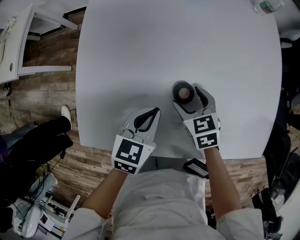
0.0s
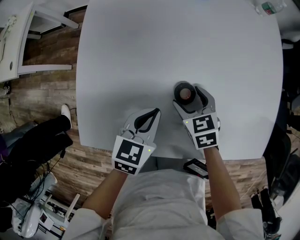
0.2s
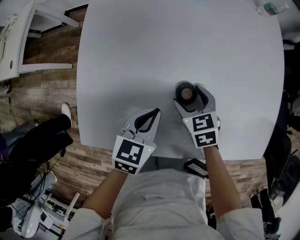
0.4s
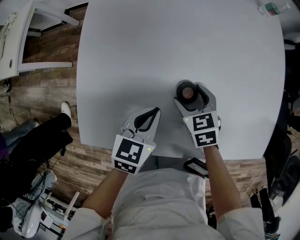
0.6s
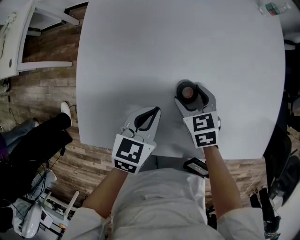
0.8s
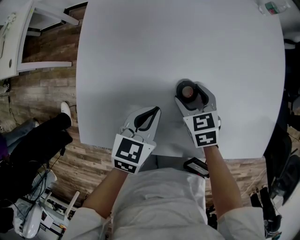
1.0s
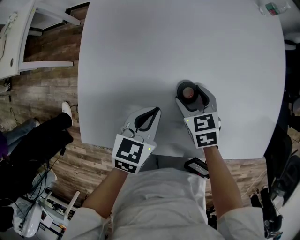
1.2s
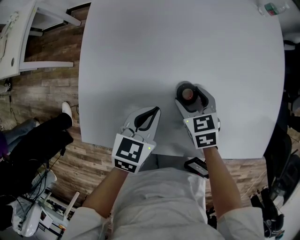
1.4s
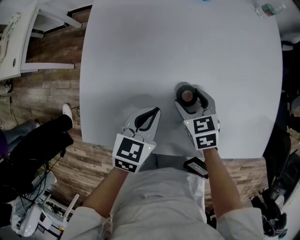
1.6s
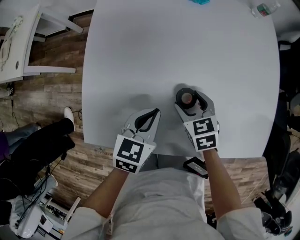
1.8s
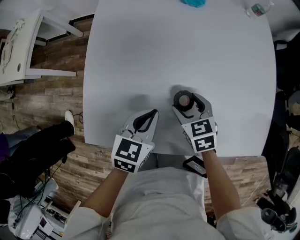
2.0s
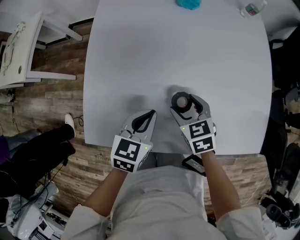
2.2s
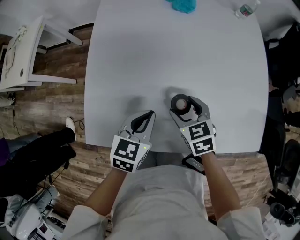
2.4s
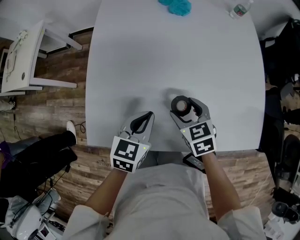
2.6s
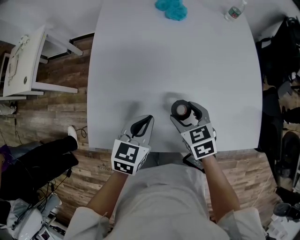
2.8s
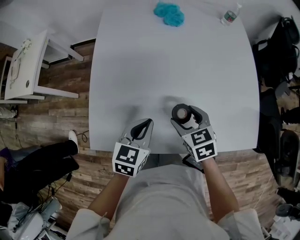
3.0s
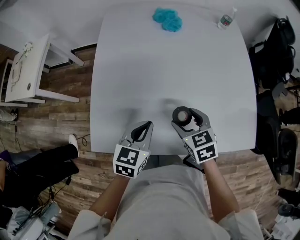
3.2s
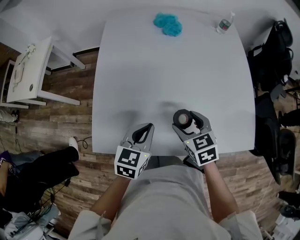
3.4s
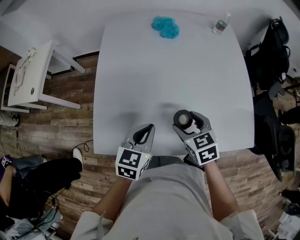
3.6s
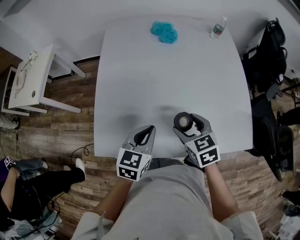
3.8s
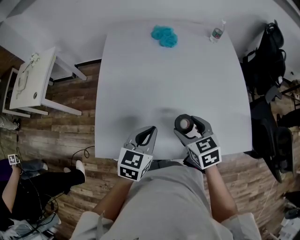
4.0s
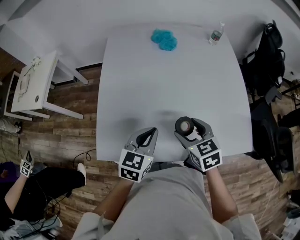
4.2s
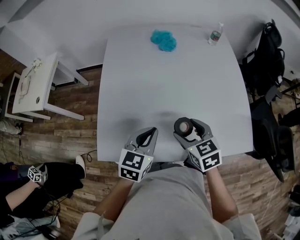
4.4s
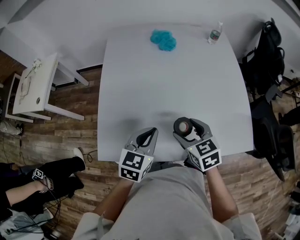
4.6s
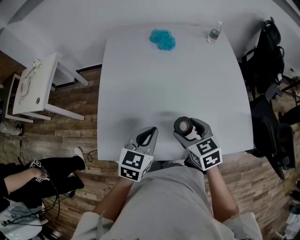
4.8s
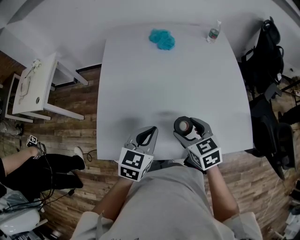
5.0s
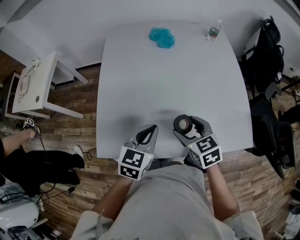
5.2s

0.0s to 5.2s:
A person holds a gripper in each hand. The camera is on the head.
0.0s to 1.8s: The grippers make only small movements.
1.8s to 3.4s: The two grippers go some 10 cm upward and backward.
3.4s to 5.2s: The right gripper shifts by some 5 cm; the left gripper changes place by about 5 cm.

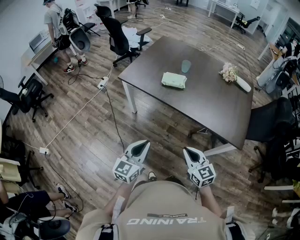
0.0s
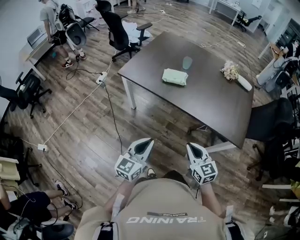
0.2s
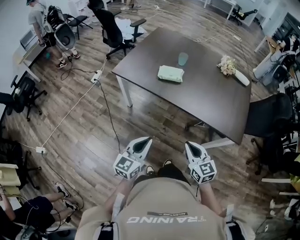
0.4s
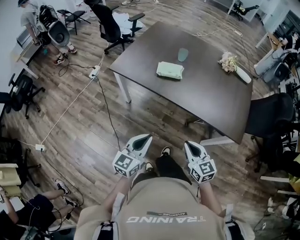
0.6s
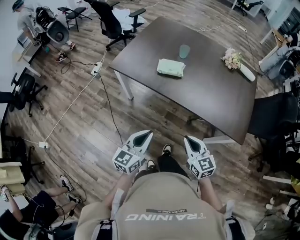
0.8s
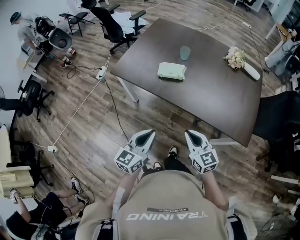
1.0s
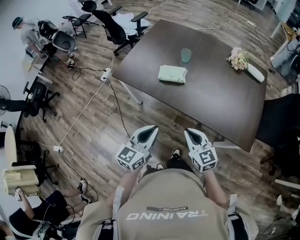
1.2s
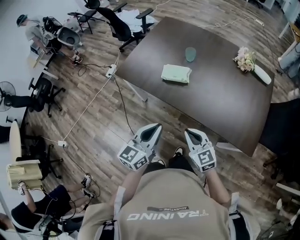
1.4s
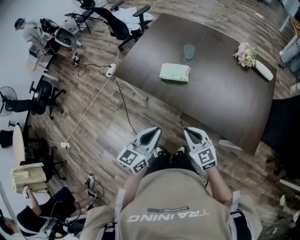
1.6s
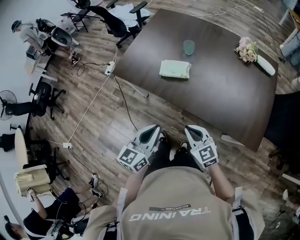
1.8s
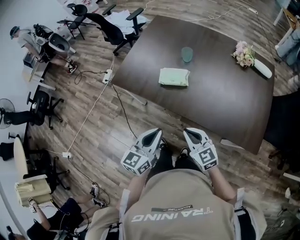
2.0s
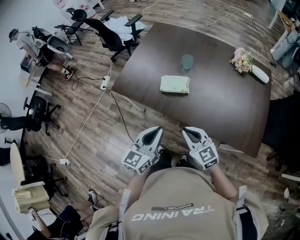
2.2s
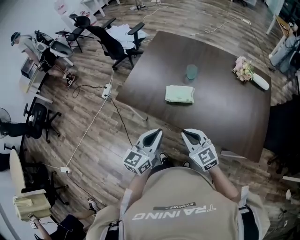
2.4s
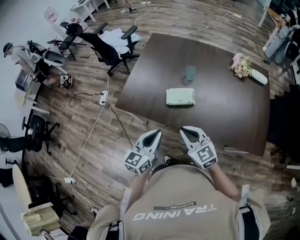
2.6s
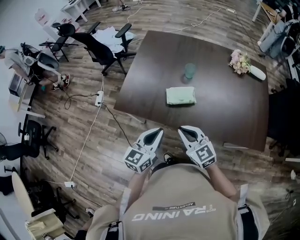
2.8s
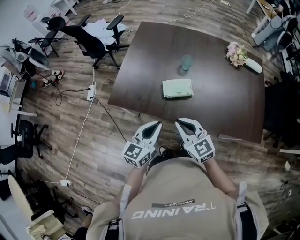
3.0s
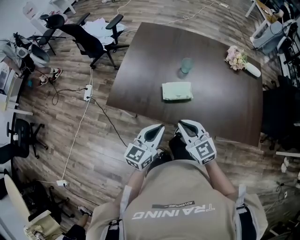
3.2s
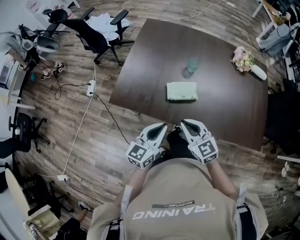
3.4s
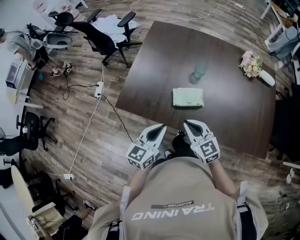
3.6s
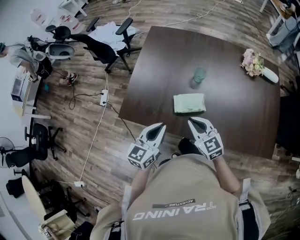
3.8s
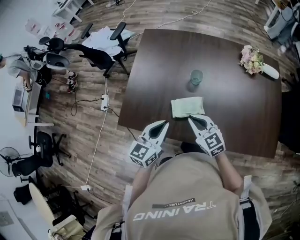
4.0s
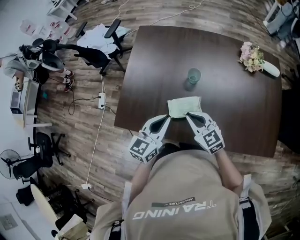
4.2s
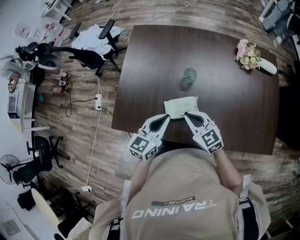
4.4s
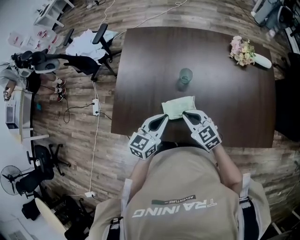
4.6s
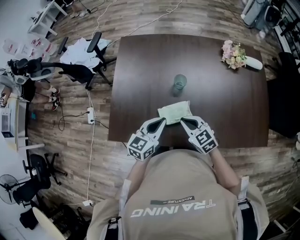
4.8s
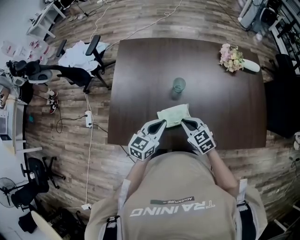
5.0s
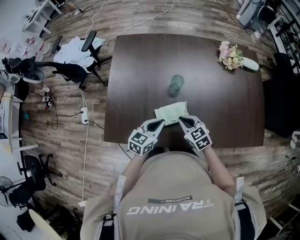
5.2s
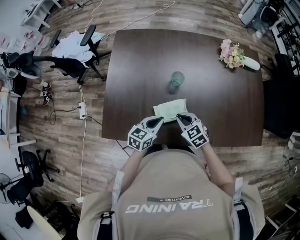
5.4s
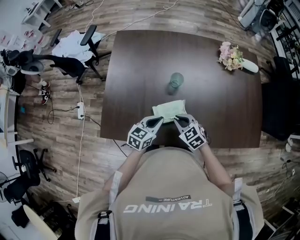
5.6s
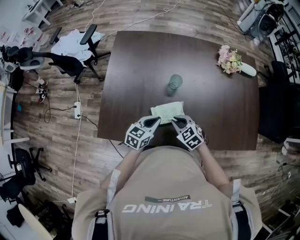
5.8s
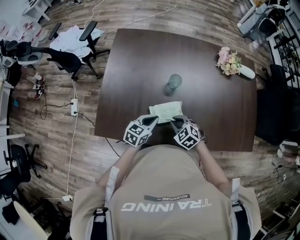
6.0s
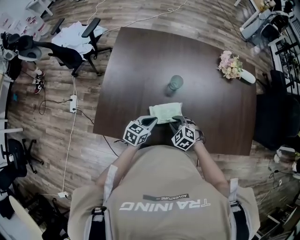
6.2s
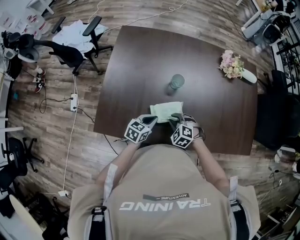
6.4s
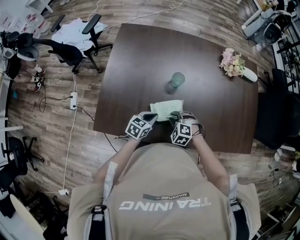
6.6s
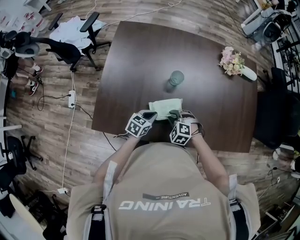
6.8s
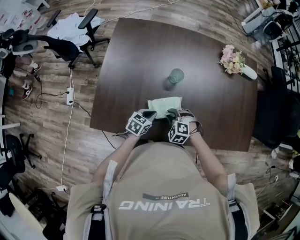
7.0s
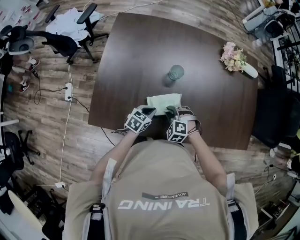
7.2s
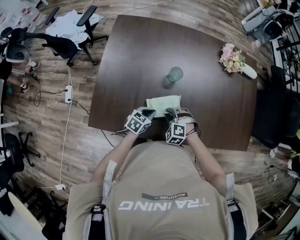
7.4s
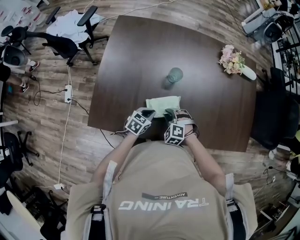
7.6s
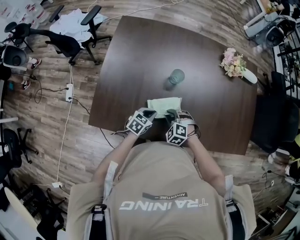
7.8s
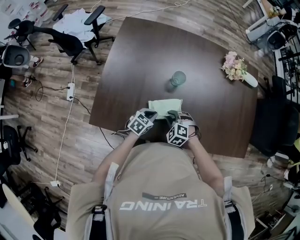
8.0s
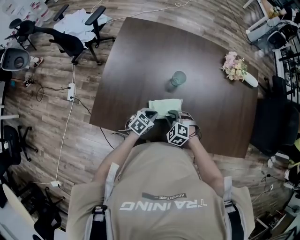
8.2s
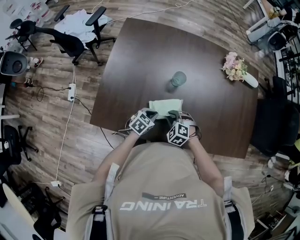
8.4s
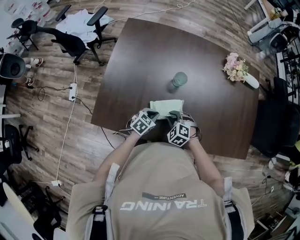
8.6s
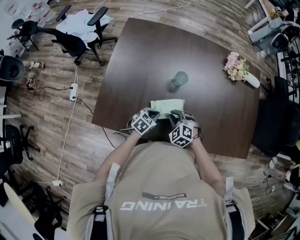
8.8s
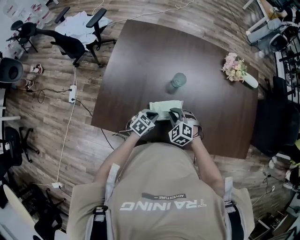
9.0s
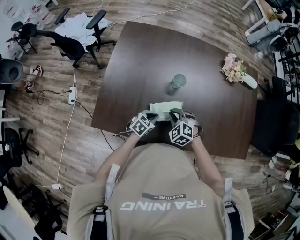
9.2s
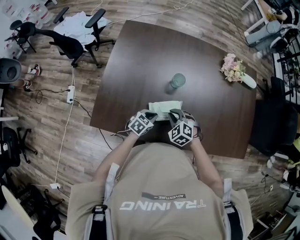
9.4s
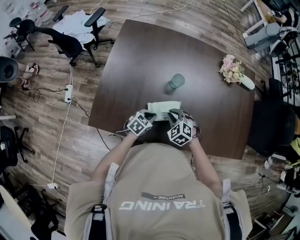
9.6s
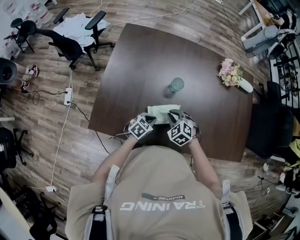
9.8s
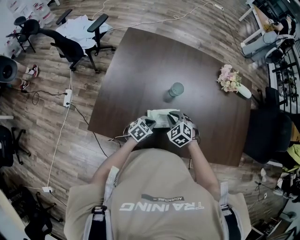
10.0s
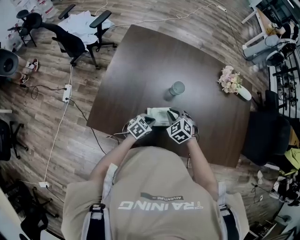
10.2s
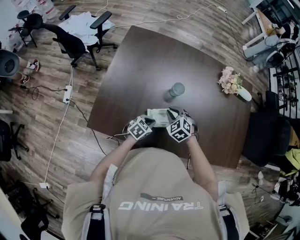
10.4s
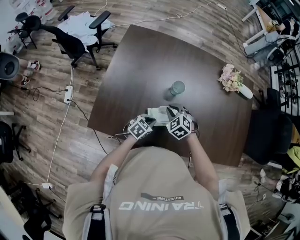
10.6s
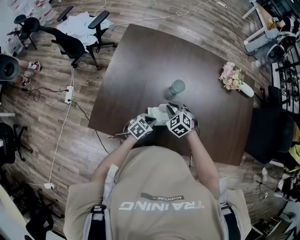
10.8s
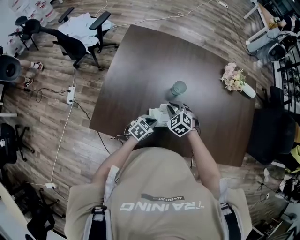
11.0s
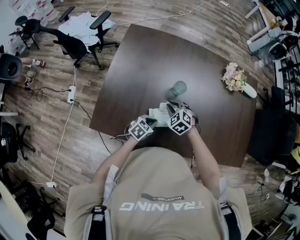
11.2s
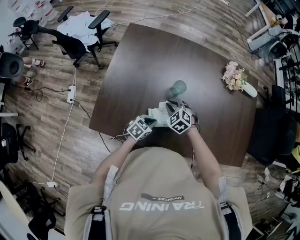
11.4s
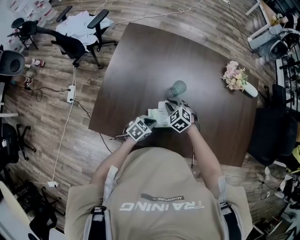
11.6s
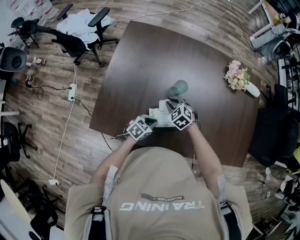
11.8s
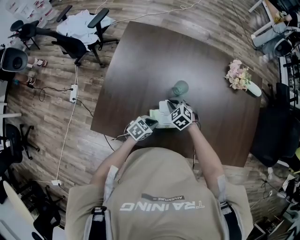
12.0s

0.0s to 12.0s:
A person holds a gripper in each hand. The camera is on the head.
0.0s to 1.6s: The left gripper moves forward and to the right, some 20 cm; the right gripper moves forward, approximately 20 cm.
1.6s to 3.0s: The two grippers go approximately 25 cm forward and to the left.
3.0s to 4.4s: Both grippers travel together forward, some 20 cm.
4.4s to 6.0s: Both grippers move downward, about 10 cm. The right gripper angles its fingers downward, by some 30 degrees. The left gripper swivels some 20 degrees.
6.0s to 7.6s: The left gripper goes about 10 cm downward. The right gripper is displaced downward by about 5 cm, and changes its angle by approximately 30 degrees.
7.6s to 9.0s: The right gripper is displaced upward by about 5 cm.
9.0s to 10.4s: The grippers make only small movements.
10.4s to 12.0s: The right gripper moves forward and downward, about 5 cm.

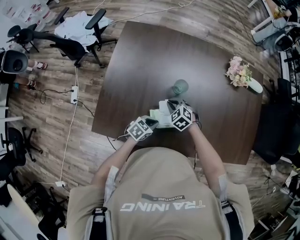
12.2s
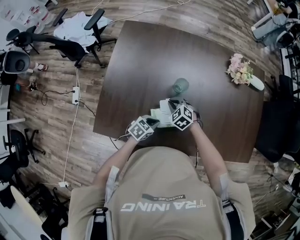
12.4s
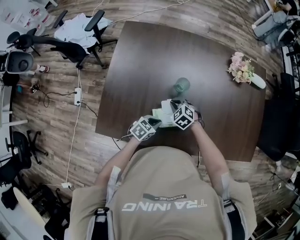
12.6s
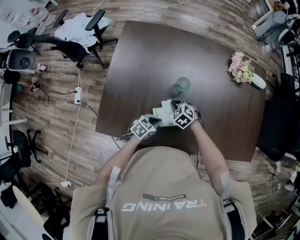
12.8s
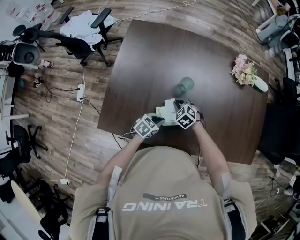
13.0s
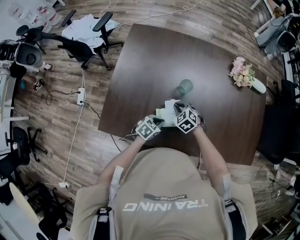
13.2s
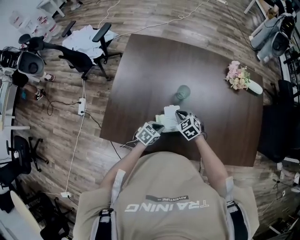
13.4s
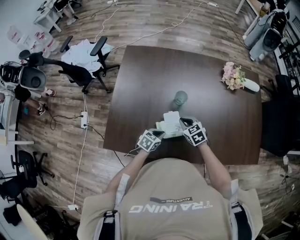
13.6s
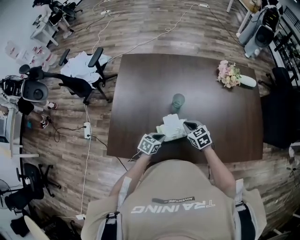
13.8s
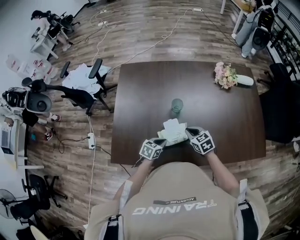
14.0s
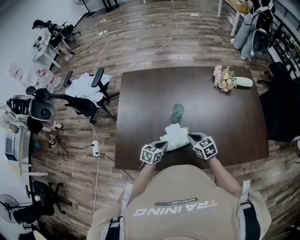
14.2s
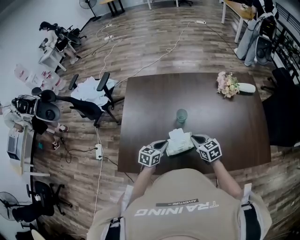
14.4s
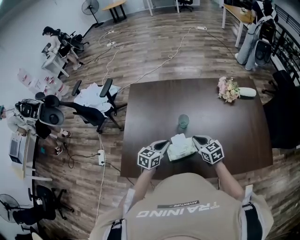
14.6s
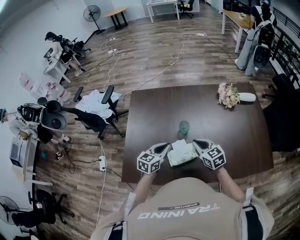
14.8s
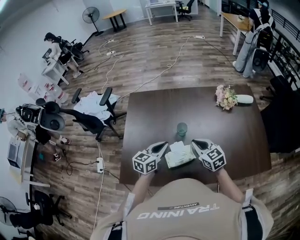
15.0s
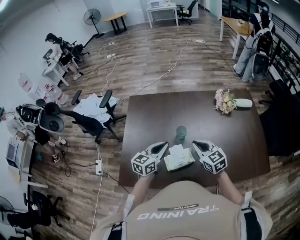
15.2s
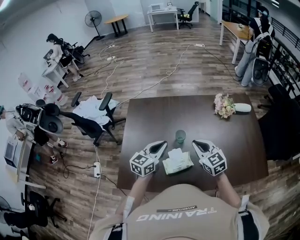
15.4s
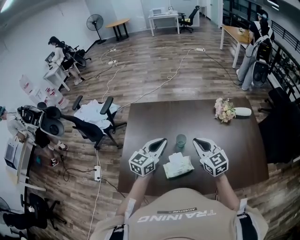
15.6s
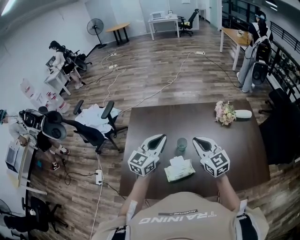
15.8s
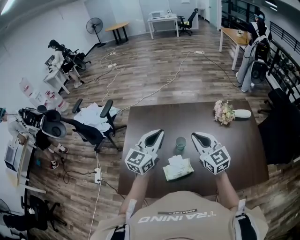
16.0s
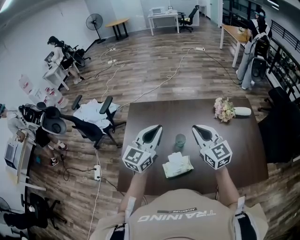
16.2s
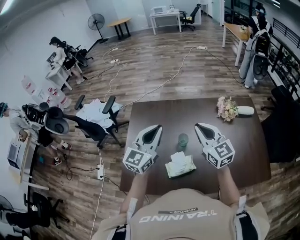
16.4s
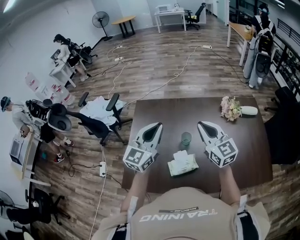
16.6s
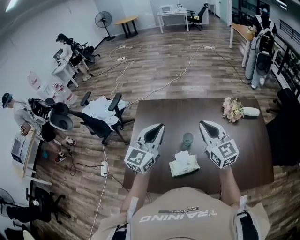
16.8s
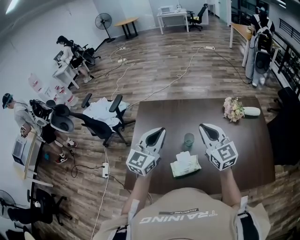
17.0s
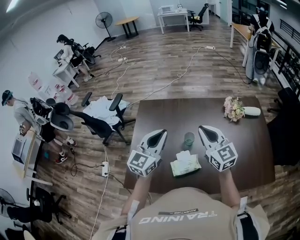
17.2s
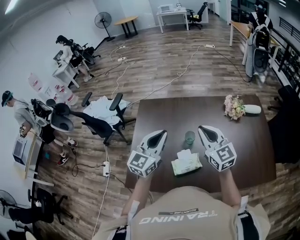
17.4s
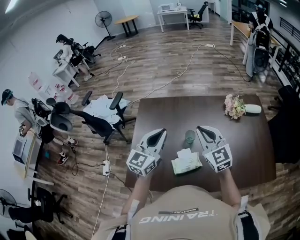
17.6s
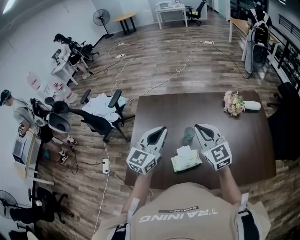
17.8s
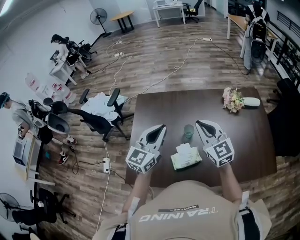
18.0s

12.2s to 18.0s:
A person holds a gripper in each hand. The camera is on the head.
12.2s to 13.6s: The right gripper is displaced to the right by roughly 5 cm, and swivels roughly 30 degrees.
13.6s to 15.0s: The two grippers go about 20 cm upward. The right gripper turns by roughly 20 degrees. Meanwhile the left gripper changes its angle by about 30 degrees.
15.0s to 16.6s: Both grippers move upward, about 20 cm. The right gripper swivels approximately 20 degrees; the left gripper rotates approximately 30 degrees.
16.6s to 18.0s: There are only small adjustments of the grippers.

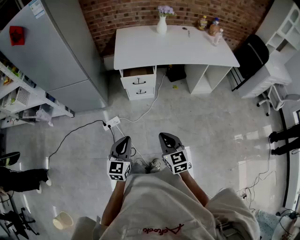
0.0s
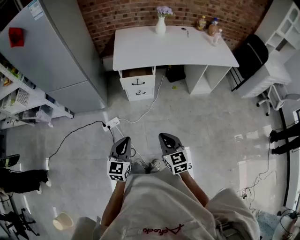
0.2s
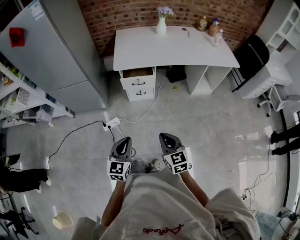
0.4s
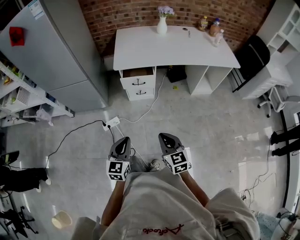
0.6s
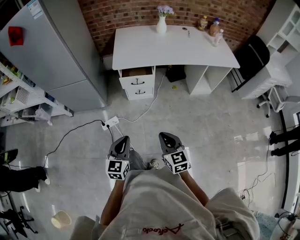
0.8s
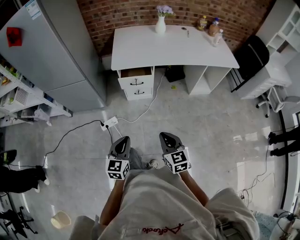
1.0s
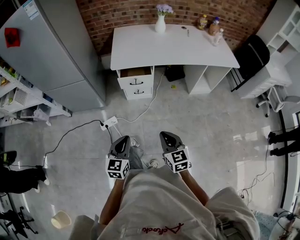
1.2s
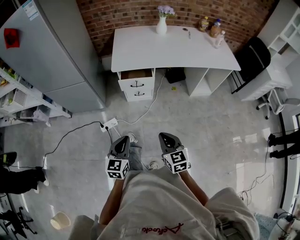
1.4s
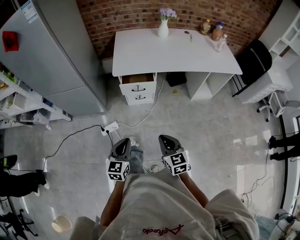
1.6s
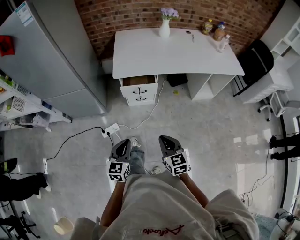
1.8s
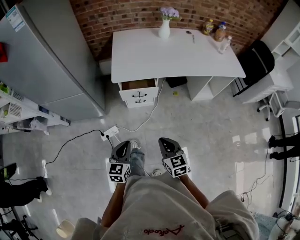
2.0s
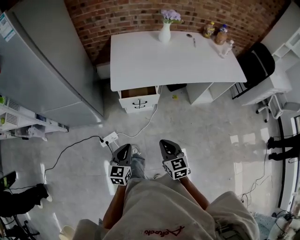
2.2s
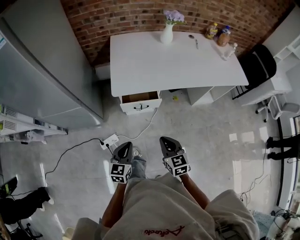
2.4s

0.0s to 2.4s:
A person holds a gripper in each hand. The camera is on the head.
0.0s to 1.2s: The grippers make only small movements.
1.2s to 2.4s: Both grippers travel together forward, about 25 cm.
